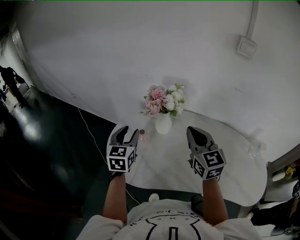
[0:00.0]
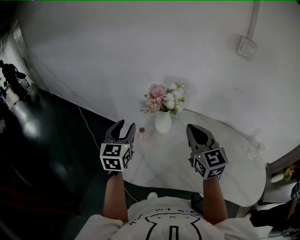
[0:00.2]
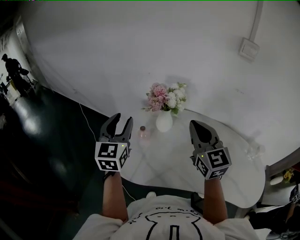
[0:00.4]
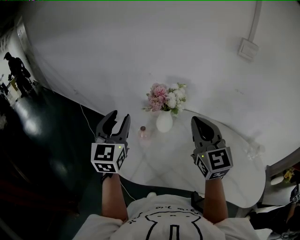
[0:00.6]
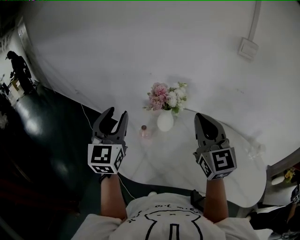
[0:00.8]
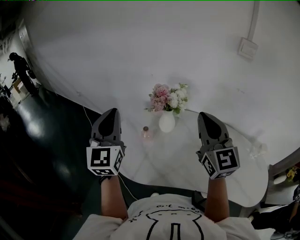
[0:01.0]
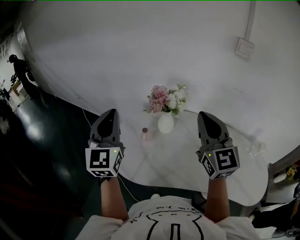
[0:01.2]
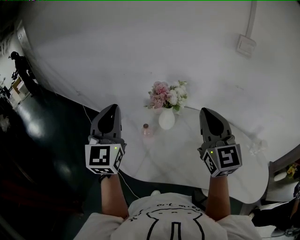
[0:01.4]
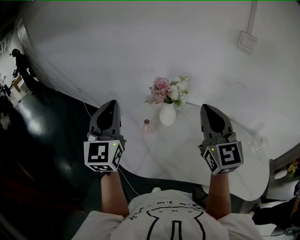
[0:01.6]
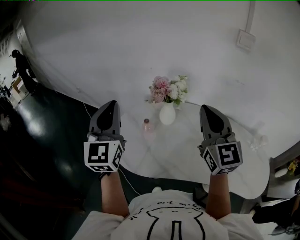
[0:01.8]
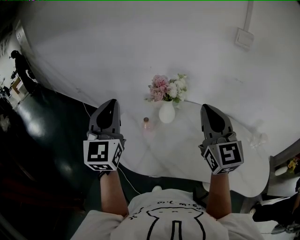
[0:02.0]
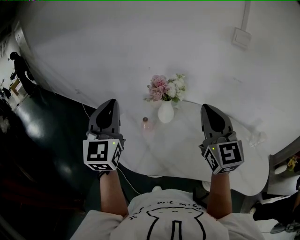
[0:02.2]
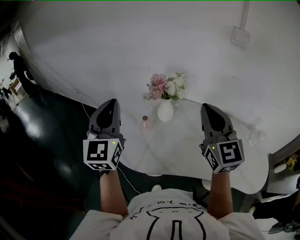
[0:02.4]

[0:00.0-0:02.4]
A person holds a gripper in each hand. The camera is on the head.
0:00.0 to 0:01.2: The right gripper is displaced upward by roughly 10 cm. The left gripper heads upward, covering some 20 cm, changes its angle by roughly 30 degrees, and closes up.
0:01.2 to 0:02.4: The grippers make only small movements.

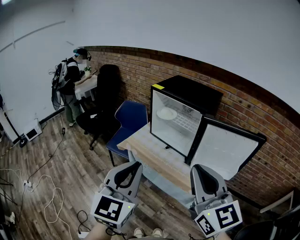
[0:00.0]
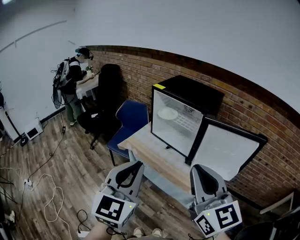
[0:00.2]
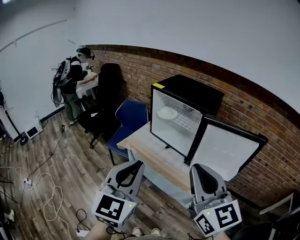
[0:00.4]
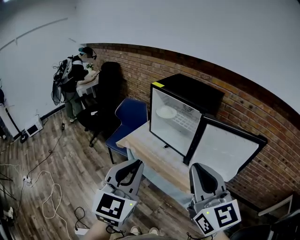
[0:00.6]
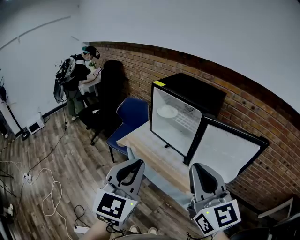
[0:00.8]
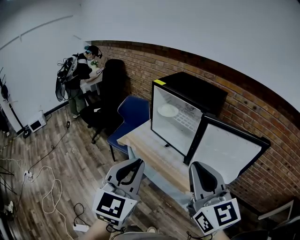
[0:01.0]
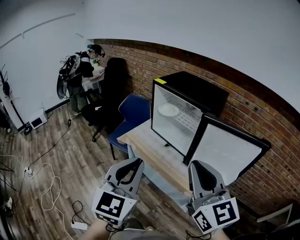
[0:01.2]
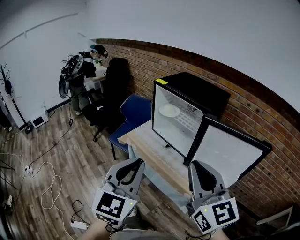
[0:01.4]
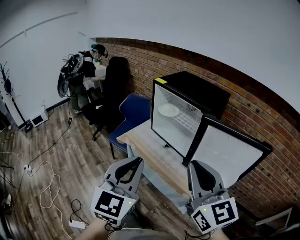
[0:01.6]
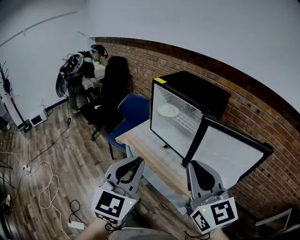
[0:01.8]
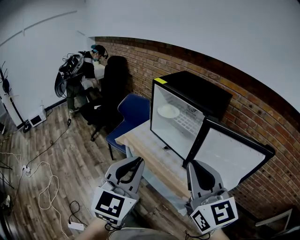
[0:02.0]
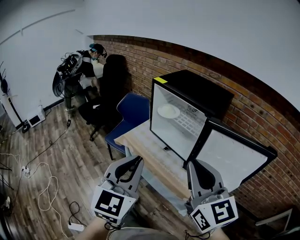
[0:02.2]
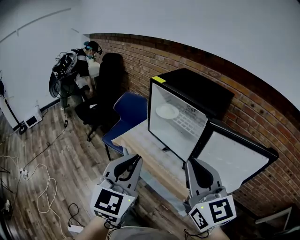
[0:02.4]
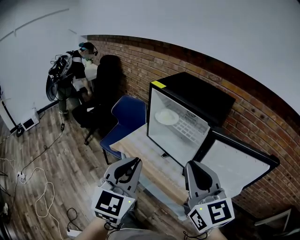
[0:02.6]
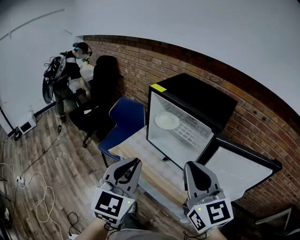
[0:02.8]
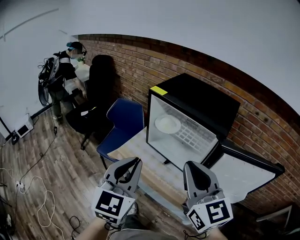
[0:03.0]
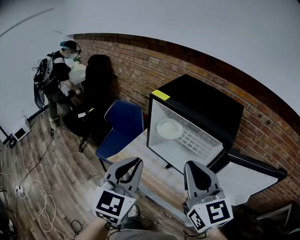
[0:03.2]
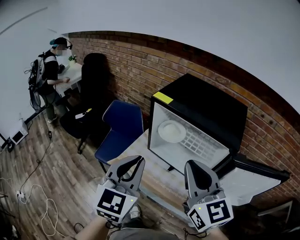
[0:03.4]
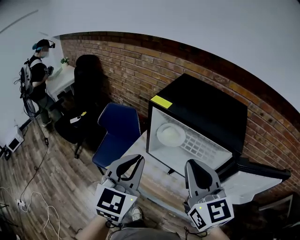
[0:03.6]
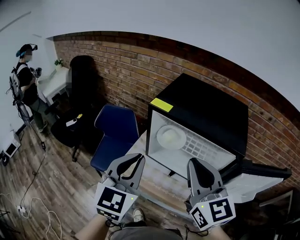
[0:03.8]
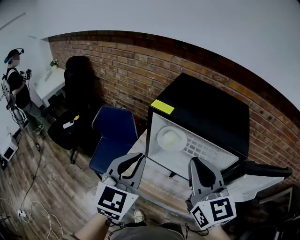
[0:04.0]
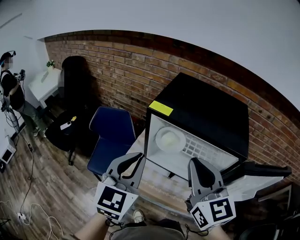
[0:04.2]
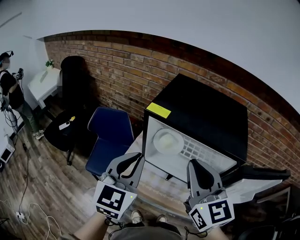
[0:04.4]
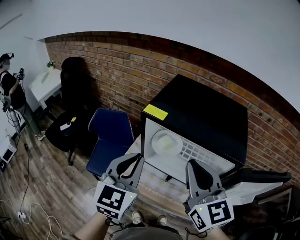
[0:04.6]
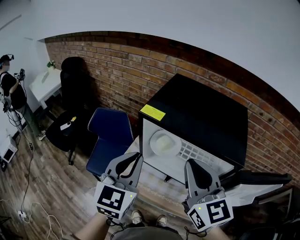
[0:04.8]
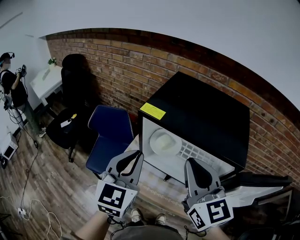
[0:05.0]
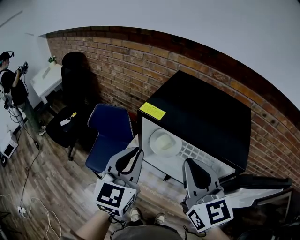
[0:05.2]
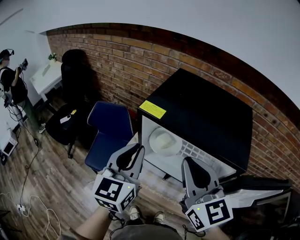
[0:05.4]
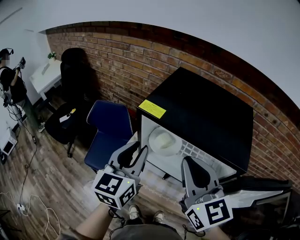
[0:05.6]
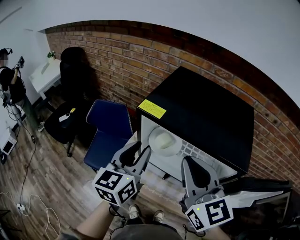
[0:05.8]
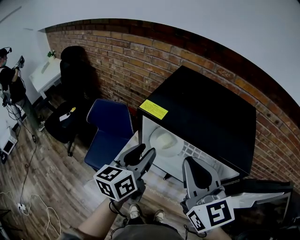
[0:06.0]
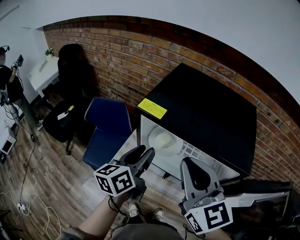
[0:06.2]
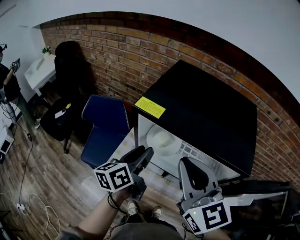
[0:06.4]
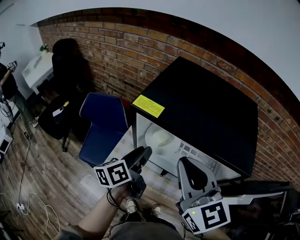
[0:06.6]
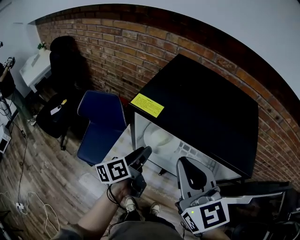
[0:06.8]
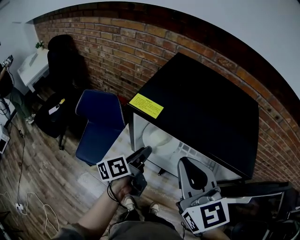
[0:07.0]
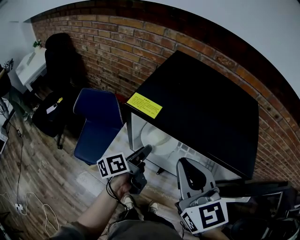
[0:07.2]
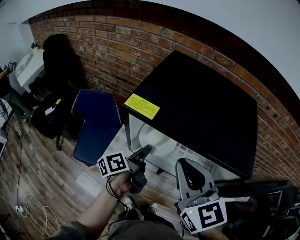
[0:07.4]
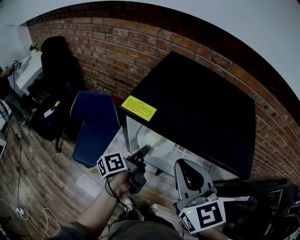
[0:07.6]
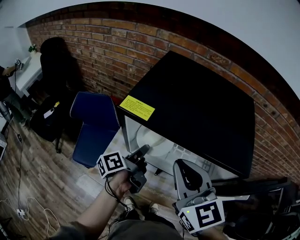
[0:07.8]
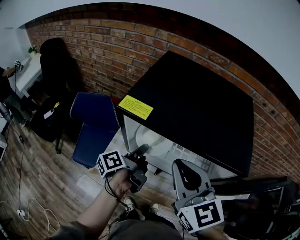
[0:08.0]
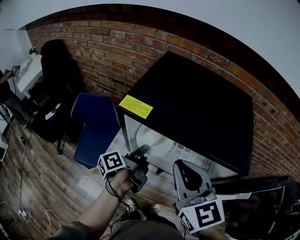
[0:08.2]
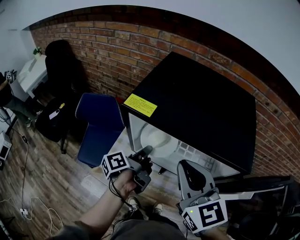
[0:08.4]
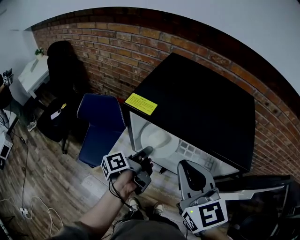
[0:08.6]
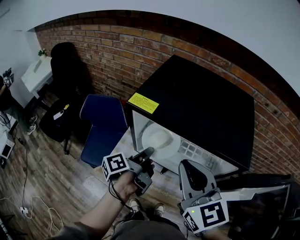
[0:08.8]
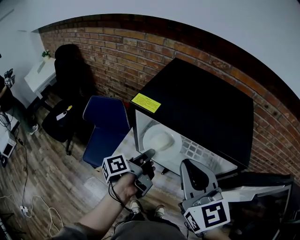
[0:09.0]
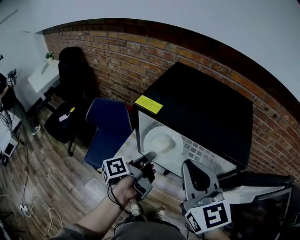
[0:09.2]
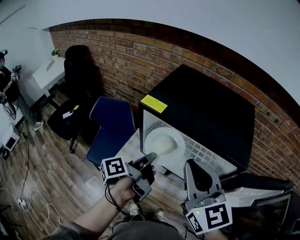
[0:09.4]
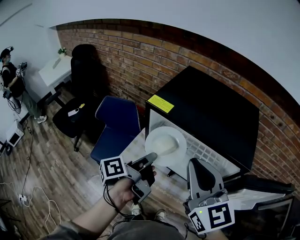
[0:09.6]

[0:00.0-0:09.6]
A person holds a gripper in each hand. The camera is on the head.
0:00.0 to 0:01.6: The left gripper is displaced to the right by about 5 cm, while the right gripper moves approximately 5 cm.
0:01.6 to 0:03.2: The grippers both shift forward by roughly 25 cm.
0:03.2 to 0:04.8: The two grippers go about 15 cm forward.
0:04.8 to 0:06.4: The left gripper moves downward and forward, some 15 cm, twists some 50 degrees counterclockwise, seen from behind, and opens its fingers.
0:06.4 to 0:08.0: The left gripper travels downward by roughly 10 cm, turns by roughly 40 degrees, and closes up.
0:08.0 to 0:09.6: The left gripper shifts roughly 15 cm backward and upward; the right gripper goes roughly 5 cm upward.

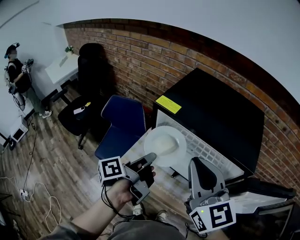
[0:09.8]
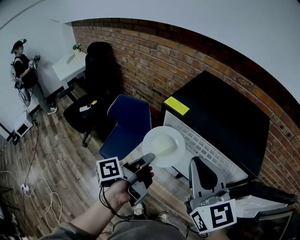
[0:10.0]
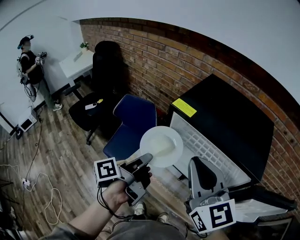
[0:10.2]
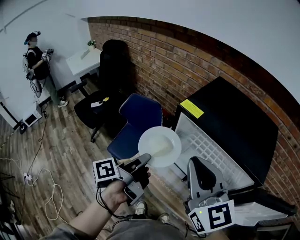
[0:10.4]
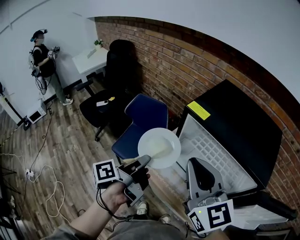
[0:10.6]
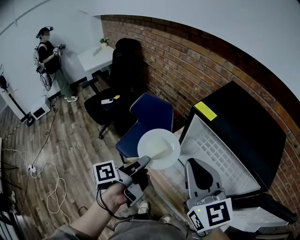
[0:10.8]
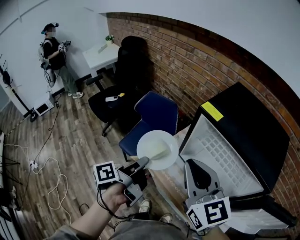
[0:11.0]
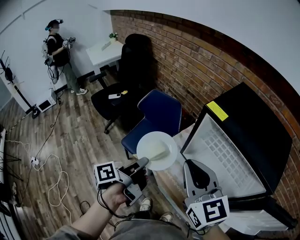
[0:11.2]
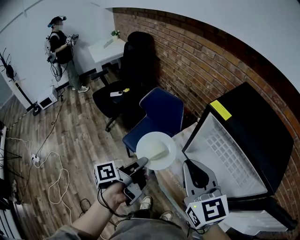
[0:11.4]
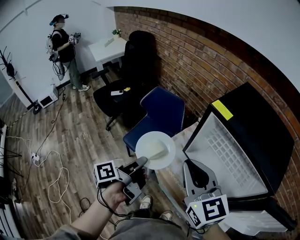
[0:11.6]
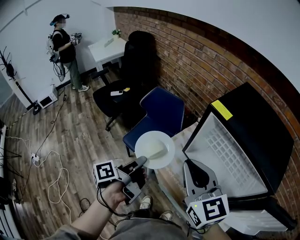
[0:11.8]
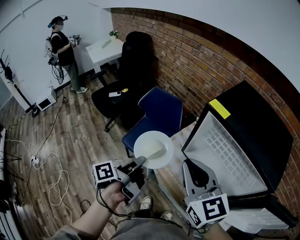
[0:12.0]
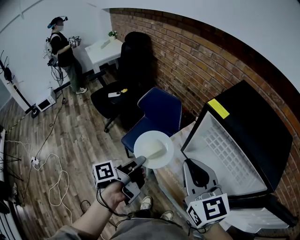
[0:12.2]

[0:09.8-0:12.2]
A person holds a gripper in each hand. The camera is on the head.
0:09.8 to 0:11.0: Both grippers move to the left, some 15 cm.
0:11.0 to 0:12.2: The grippers move only a little.

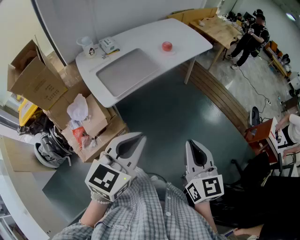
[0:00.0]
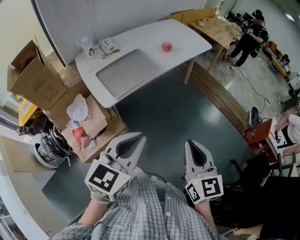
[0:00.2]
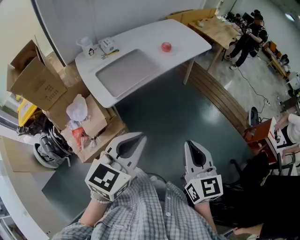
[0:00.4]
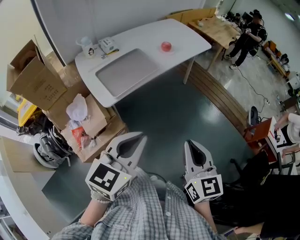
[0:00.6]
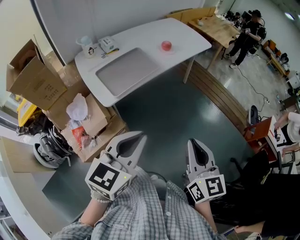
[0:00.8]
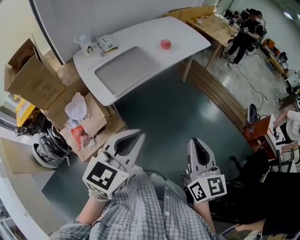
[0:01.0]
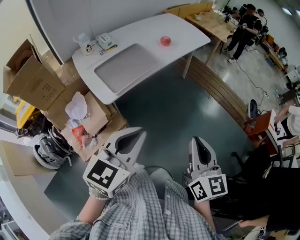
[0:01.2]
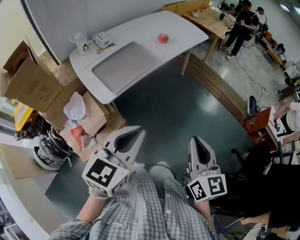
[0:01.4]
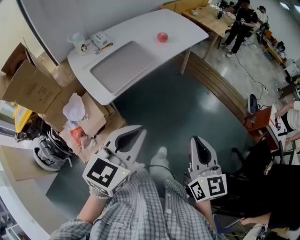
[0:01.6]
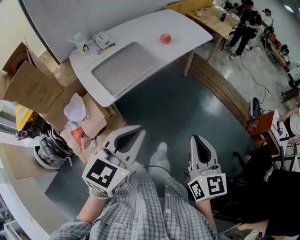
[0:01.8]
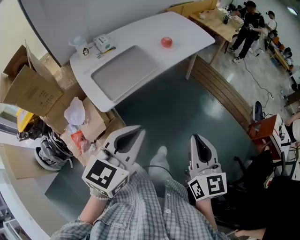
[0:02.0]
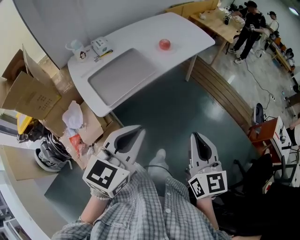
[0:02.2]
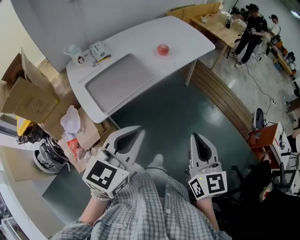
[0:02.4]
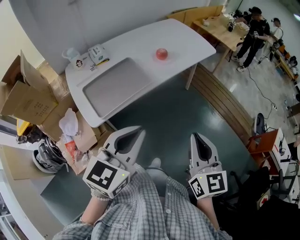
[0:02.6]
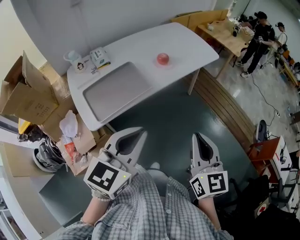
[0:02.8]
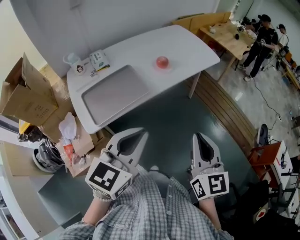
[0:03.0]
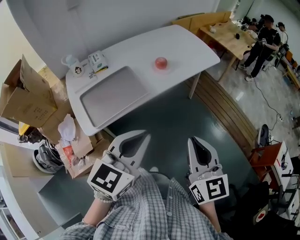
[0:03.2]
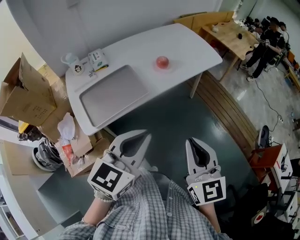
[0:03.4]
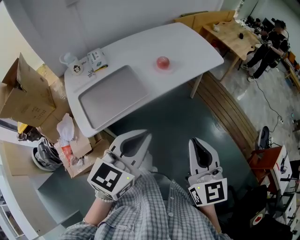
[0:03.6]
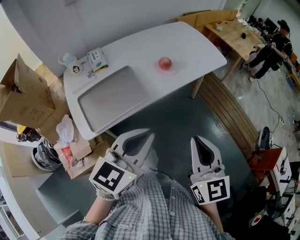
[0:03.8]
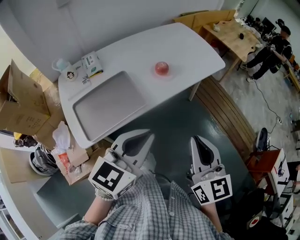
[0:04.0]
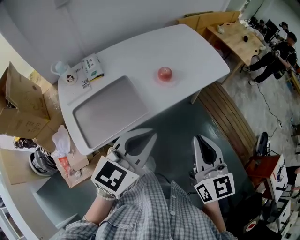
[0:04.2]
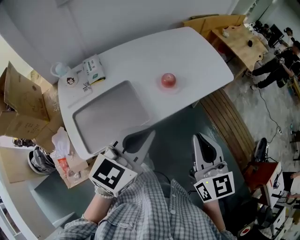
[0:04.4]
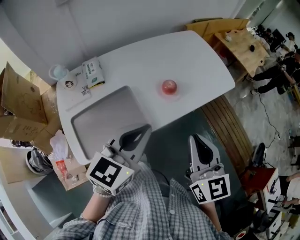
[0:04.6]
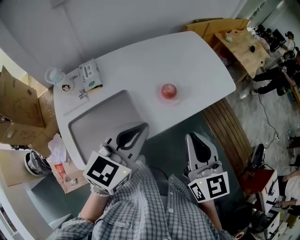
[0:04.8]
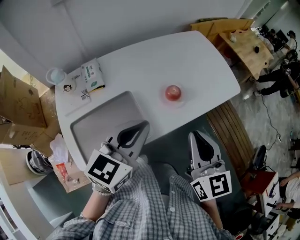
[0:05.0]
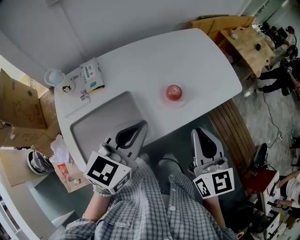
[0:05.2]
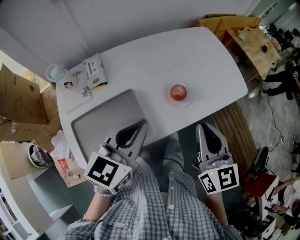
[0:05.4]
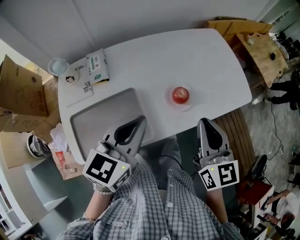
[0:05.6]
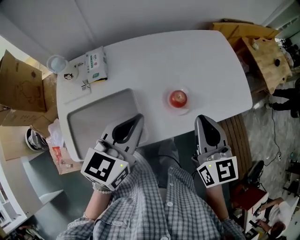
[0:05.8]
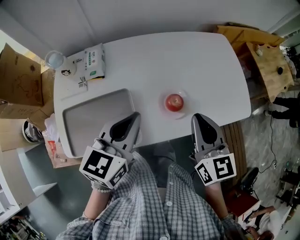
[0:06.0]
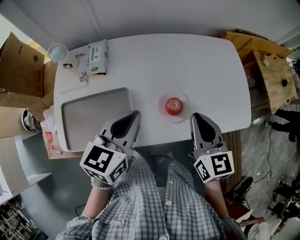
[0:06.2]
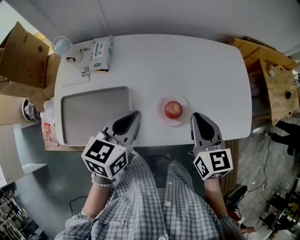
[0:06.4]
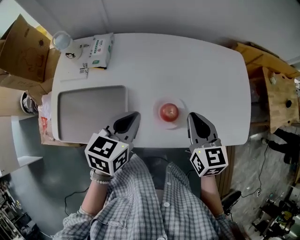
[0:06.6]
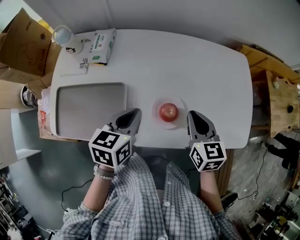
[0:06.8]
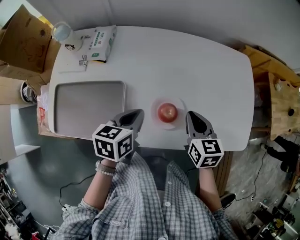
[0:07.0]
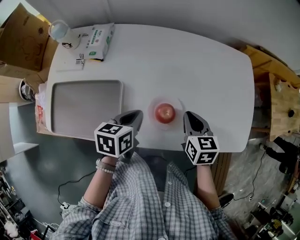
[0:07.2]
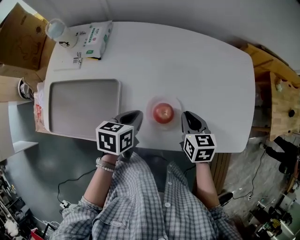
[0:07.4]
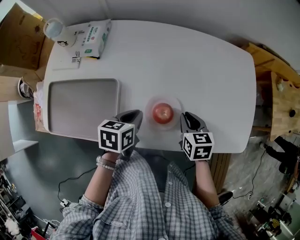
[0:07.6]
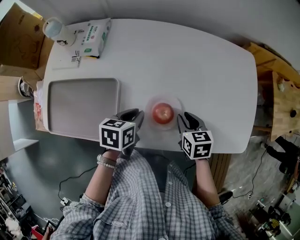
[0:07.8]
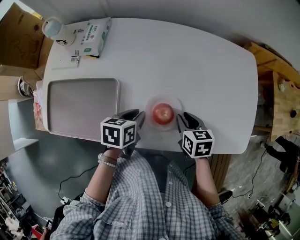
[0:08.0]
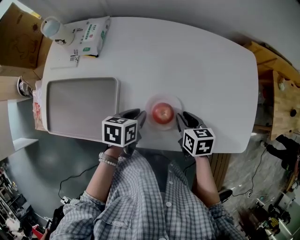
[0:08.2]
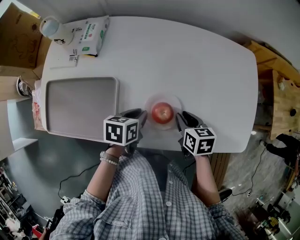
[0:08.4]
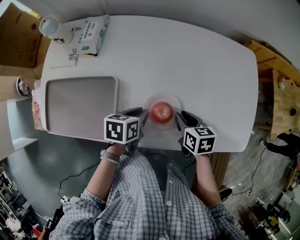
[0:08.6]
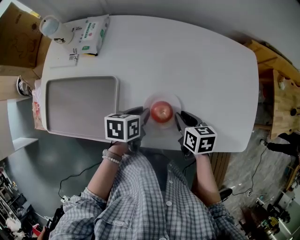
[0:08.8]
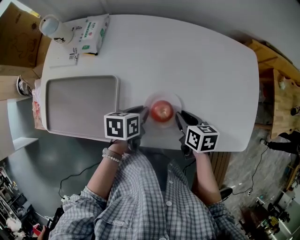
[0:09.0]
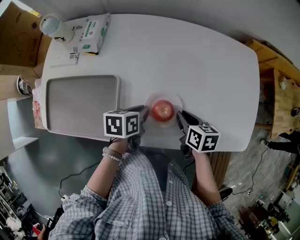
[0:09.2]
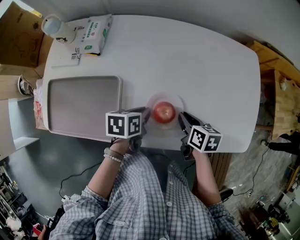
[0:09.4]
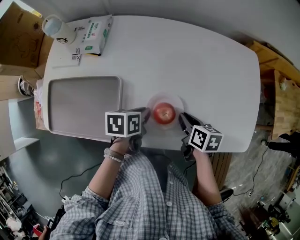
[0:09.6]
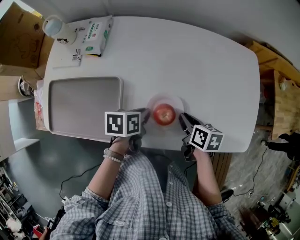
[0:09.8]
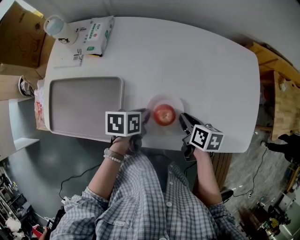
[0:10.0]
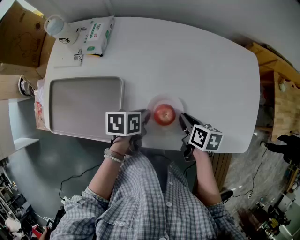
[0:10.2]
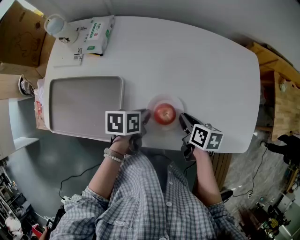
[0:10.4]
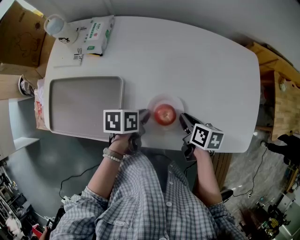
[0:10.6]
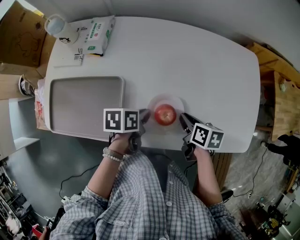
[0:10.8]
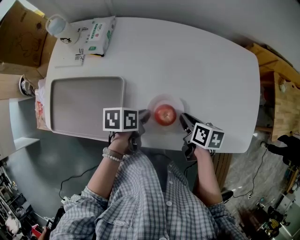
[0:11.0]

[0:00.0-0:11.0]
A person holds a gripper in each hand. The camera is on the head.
0:00.0 to 0:01.6: The grippers move only a little.
0:01.6 to 0:03.2: The right gripper travels forward by approximately 25 cm; the left gripper goes about 25 cm forward and to the right.
0:03.2 to 0:04.8: Both grippers travel together forward, about 25 cm.
0:04.8 to 0:06.2: The right gripper moves forward, roughly 20 cm, and changes its angle by some 20 degrees; the left gripper heads forward and downward, covering approximately 15 cm, and changes its angle by some 30 degrees.
0:06.2 to 0:07.8: Both grippers move downward, about 20 cm. The left gripper rotates some 40 degrees. The right gripper angles its fingers downward, by about 30 degrees.
0:07.8 to 0:09.4: The right gripper turns by about 20 degrees.
0:09.4 to 0:11.0: The grippers make only small movements.
